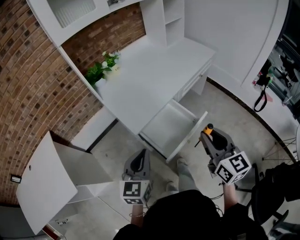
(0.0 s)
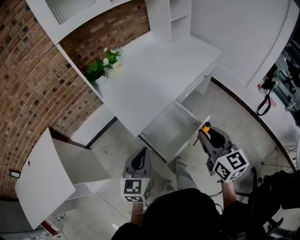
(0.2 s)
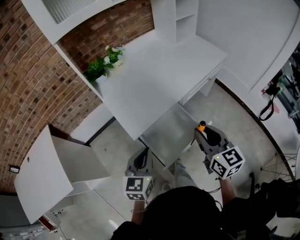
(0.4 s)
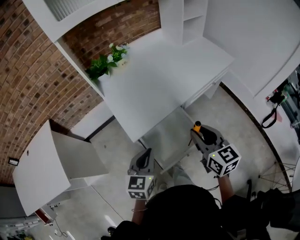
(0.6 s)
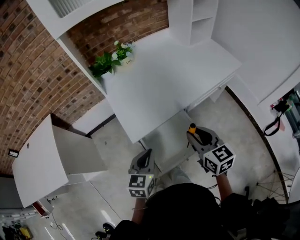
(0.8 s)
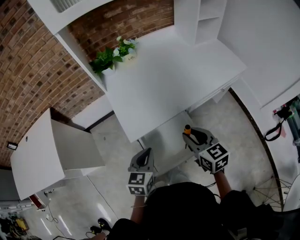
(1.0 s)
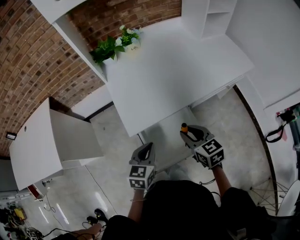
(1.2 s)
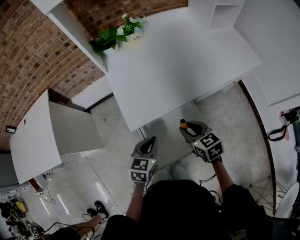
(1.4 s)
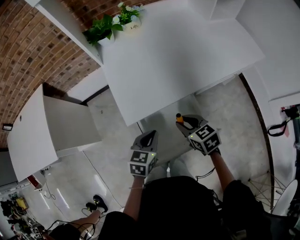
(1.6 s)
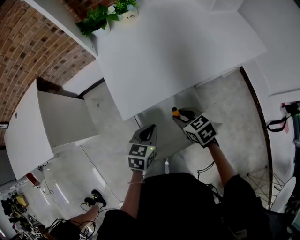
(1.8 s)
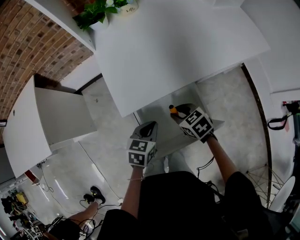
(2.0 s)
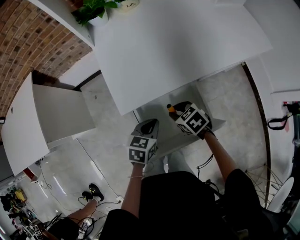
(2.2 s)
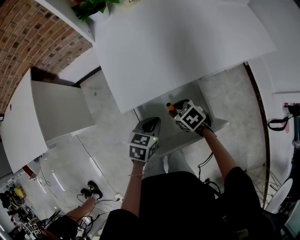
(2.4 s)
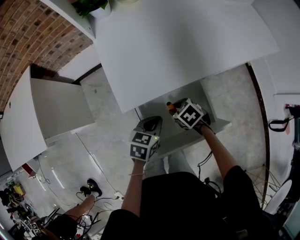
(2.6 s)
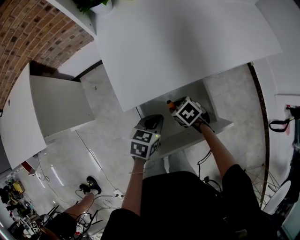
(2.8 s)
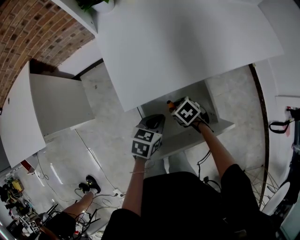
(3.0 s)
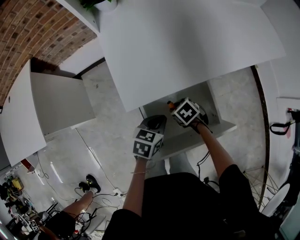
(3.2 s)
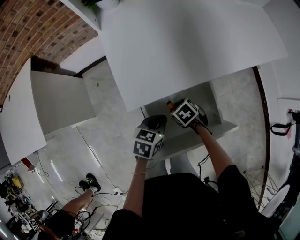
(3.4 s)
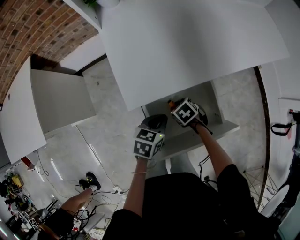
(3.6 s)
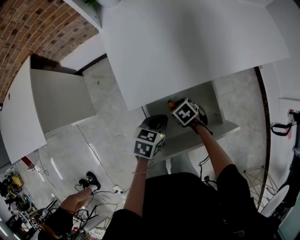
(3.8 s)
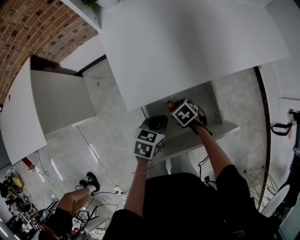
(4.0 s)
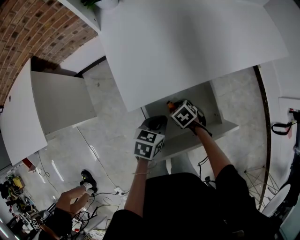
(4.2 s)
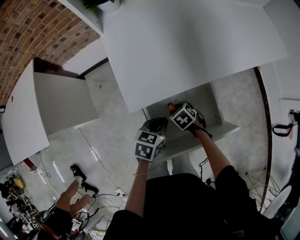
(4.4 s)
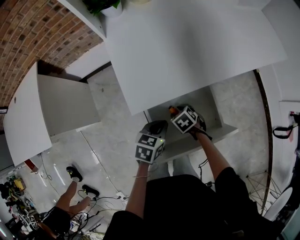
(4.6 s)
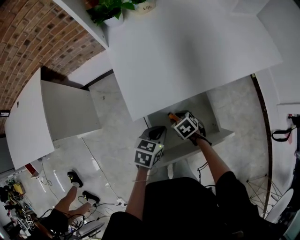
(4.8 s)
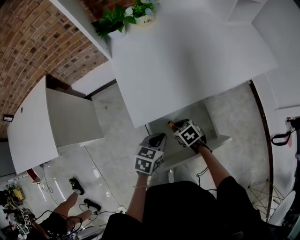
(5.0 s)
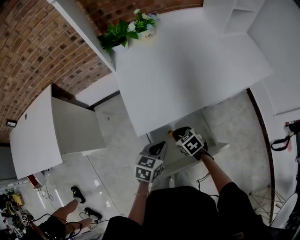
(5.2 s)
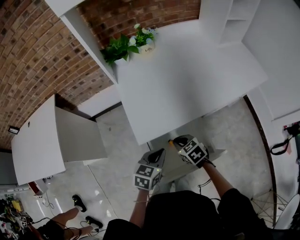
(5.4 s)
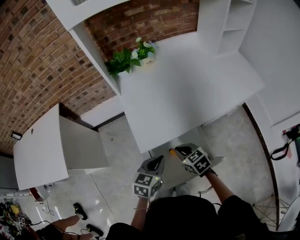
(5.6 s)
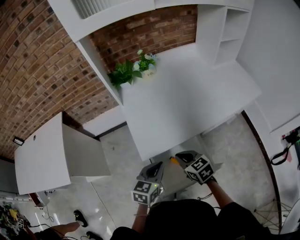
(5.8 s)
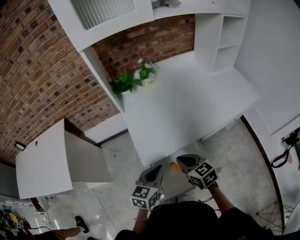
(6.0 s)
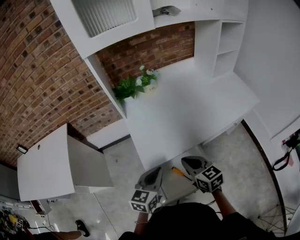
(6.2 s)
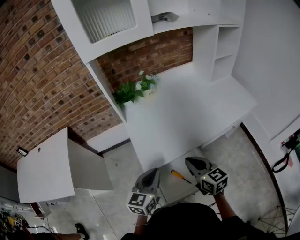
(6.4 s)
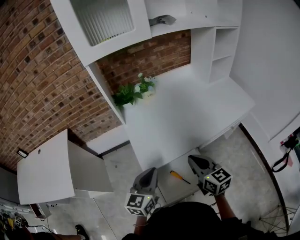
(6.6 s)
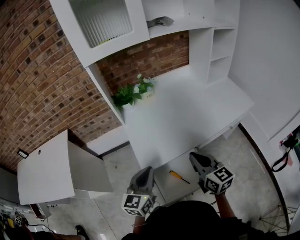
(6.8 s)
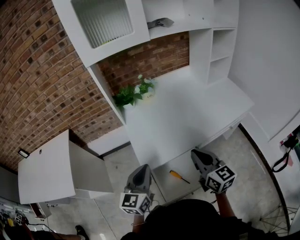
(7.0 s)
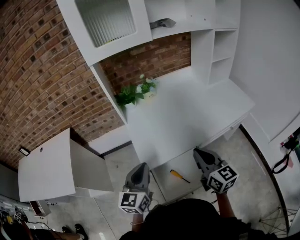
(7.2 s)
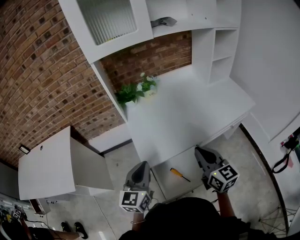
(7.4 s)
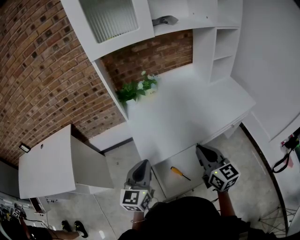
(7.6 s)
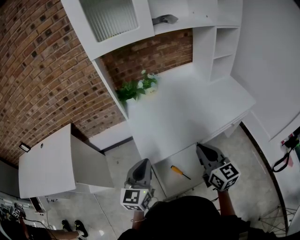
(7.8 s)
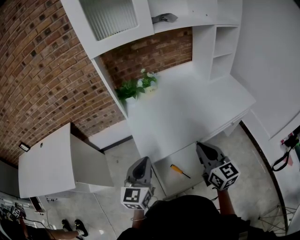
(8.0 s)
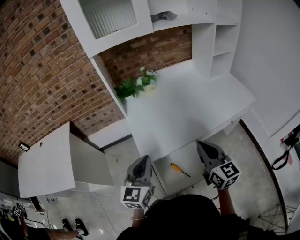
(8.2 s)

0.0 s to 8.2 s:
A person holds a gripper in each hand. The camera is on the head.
0.0 to 1.6 s: The two grippers go about 20 cm downward. The left gripper rotates roughly 30 degrees; the right gripper tilts its fingers some 30 degrees downward.
1.6 to 3.2 s: The right gripper shifts roughly 20 cm downward, and swivels about 30 degrees. Meanwhile the left gripper is displaced downward by about 10 cm.
3.2 to 5.0 s: The grippers move only a little.
5.0 to 6.6 s: Both grippers travel together upward, about 30 cm. The left gripper tilts its fingers about 30 degrees upward. The right gripper angles its fingers upward, by approximately 50 degrees.
6.6 to 8.2 s: The right gripper moves upward, approximately 5 cm. Meanwhile the left gripper shifts by roughly 5 cm.

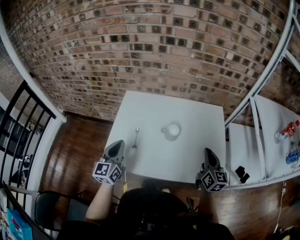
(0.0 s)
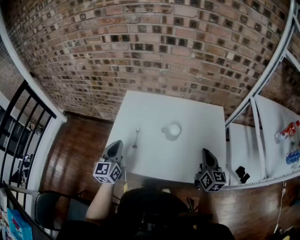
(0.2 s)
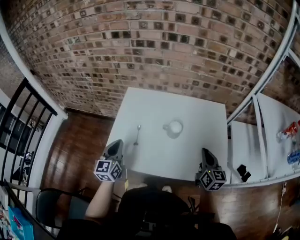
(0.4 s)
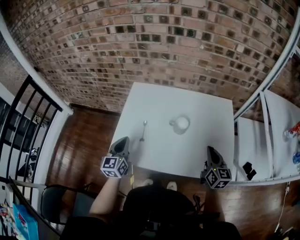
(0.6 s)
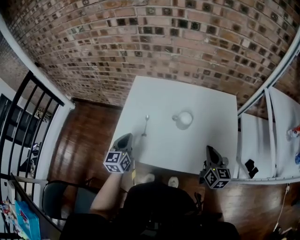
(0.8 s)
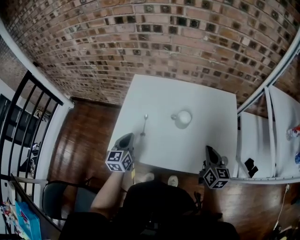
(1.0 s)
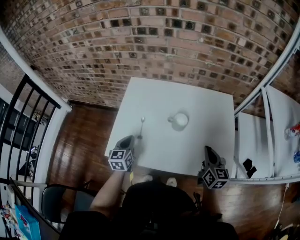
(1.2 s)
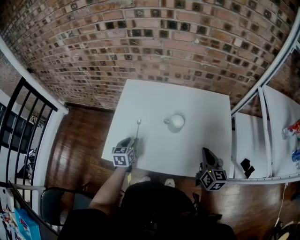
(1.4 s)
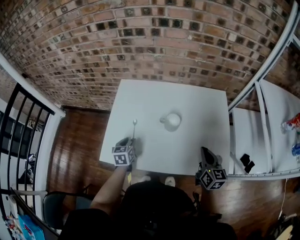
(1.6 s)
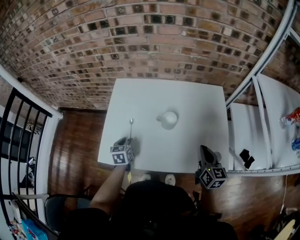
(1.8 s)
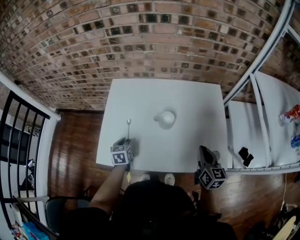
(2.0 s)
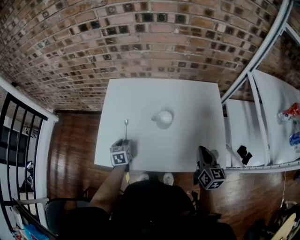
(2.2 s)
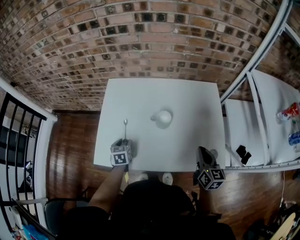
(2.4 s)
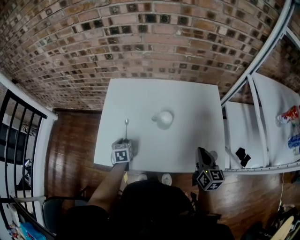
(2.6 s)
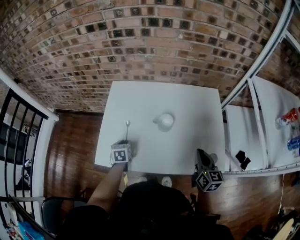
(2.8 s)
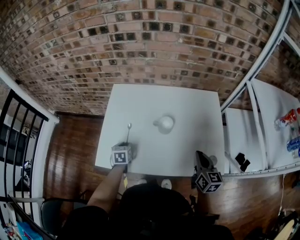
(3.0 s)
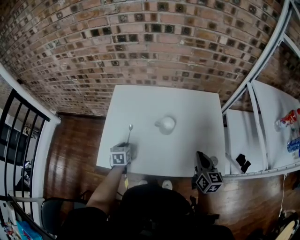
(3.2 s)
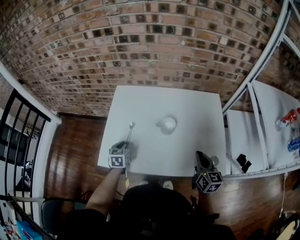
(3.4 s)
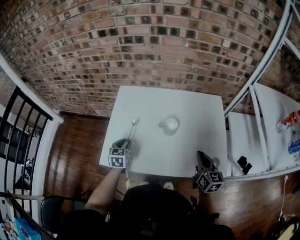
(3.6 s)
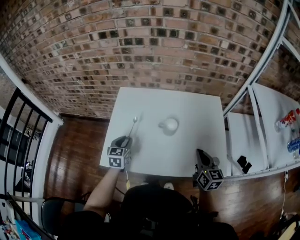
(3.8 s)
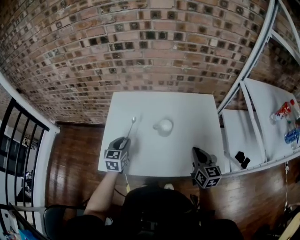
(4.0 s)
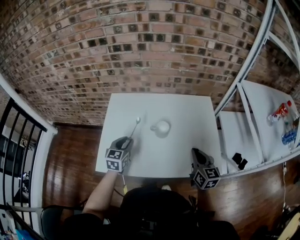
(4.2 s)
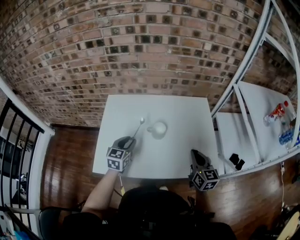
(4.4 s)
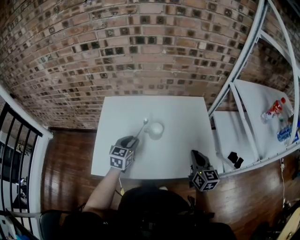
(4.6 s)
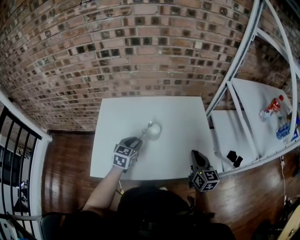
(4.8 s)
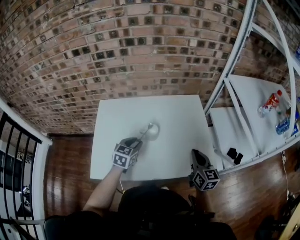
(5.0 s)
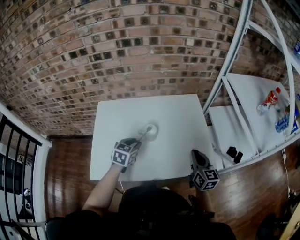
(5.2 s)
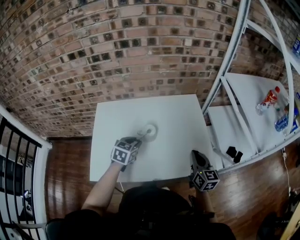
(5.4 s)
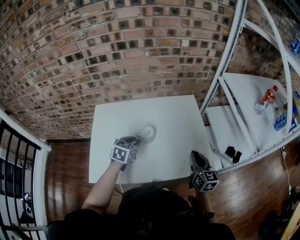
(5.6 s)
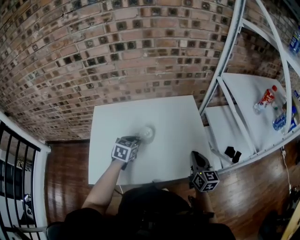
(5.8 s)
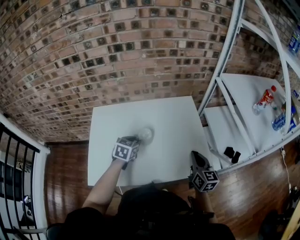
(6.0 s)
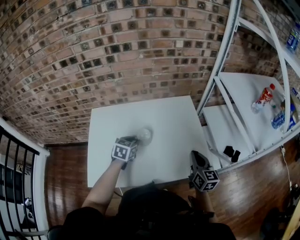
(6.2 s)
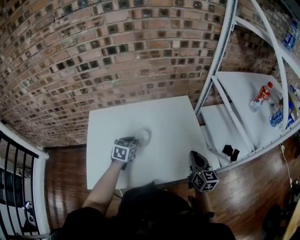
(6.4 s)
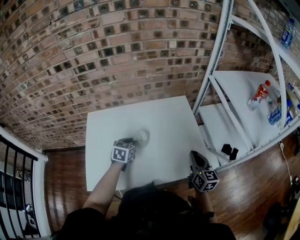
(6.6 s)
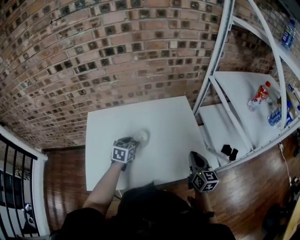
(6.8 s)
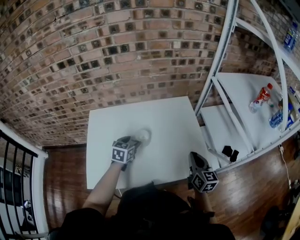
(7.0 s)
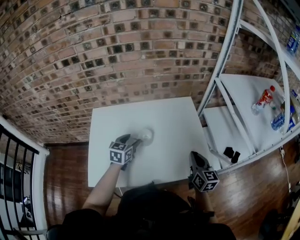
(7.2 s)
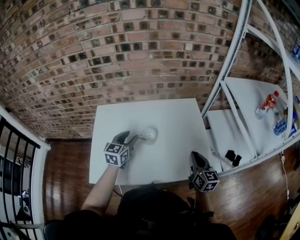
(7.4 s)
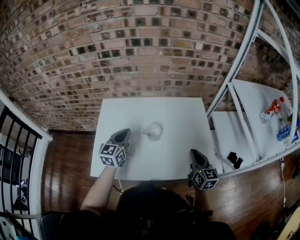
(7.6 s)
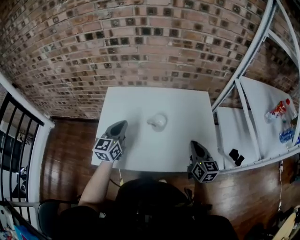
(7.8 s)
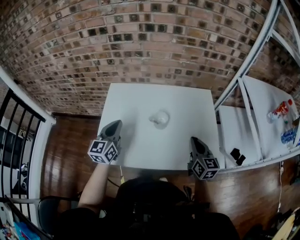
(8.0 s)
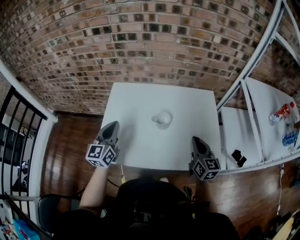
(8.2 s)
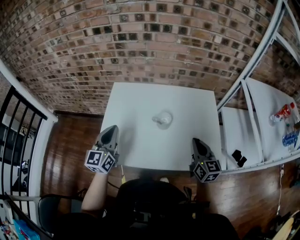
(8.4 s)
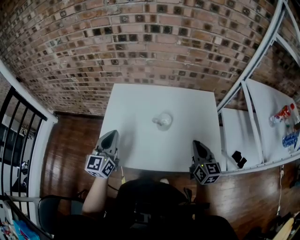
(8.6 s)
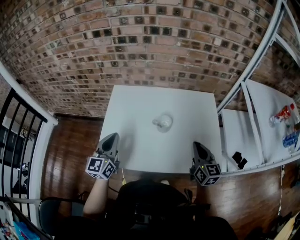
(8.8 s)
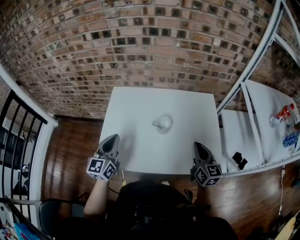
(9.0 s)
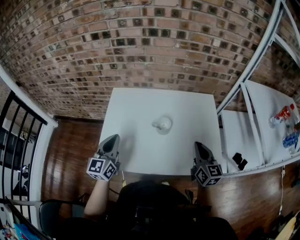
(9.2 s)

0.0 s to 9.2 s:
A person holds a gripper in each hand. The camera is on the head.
0.0 to 1.6 s: The left gripper is displaced downward by some 20 cm, tips its fingers downward by roughly 30 degrees, and opens; the right gripper moves downward, roughly 5 cm.
1.6 to 3.0 s: There are only small adjustments of the grippers.
3.0 to 4.6 s: The left gripper moves upward and to the right, roughly 20 cm, and turns by some 30 degrees.
4.6 to 6.2 s: The left gripper goes approximately 10 cm forward and to the right, while the right gripper is displaced to the right by some 5 cm.
6.2 to 7.6 s: The left gripper travels upward, to the left and backward by roughly 15 cm, swivels approximately 30 degrees, and closes up.
7.6 to 9.2 s: The left gripper travels to the left and backward by about 15 cm.

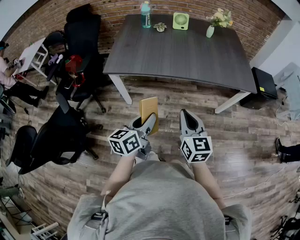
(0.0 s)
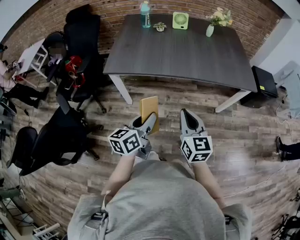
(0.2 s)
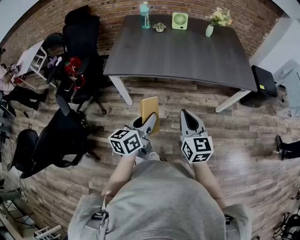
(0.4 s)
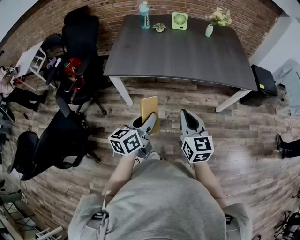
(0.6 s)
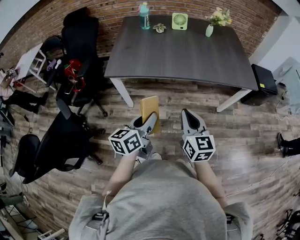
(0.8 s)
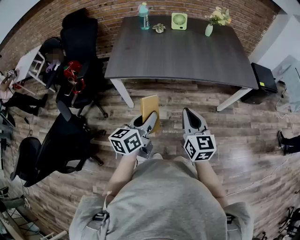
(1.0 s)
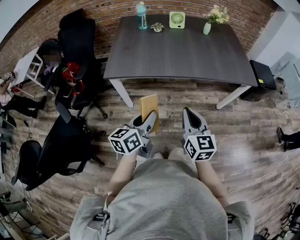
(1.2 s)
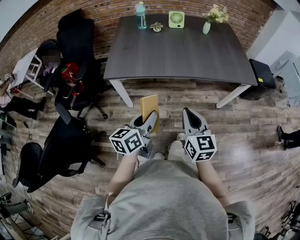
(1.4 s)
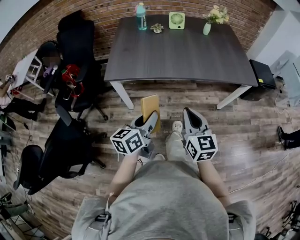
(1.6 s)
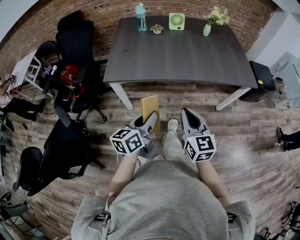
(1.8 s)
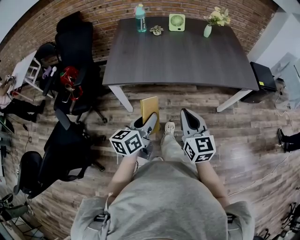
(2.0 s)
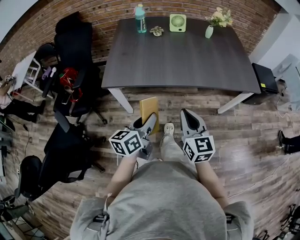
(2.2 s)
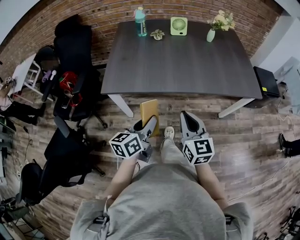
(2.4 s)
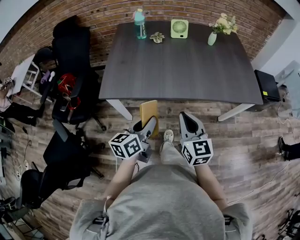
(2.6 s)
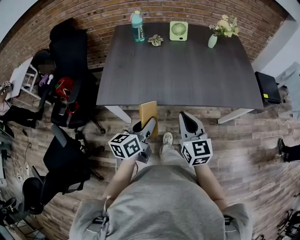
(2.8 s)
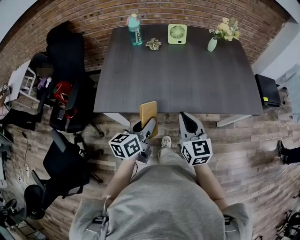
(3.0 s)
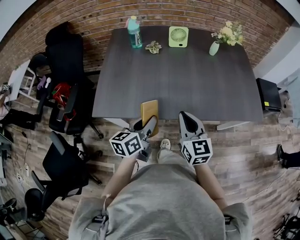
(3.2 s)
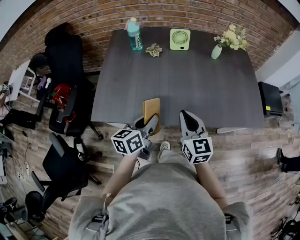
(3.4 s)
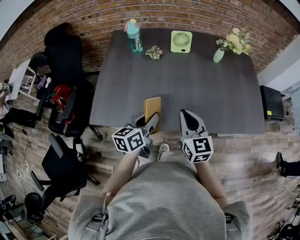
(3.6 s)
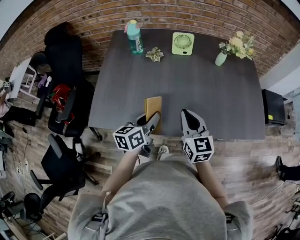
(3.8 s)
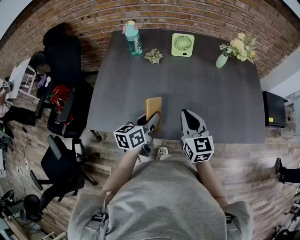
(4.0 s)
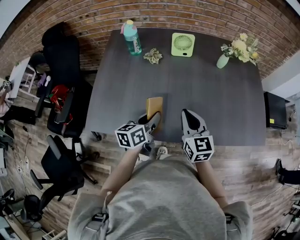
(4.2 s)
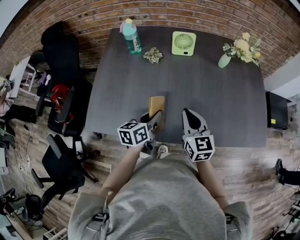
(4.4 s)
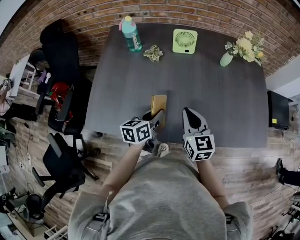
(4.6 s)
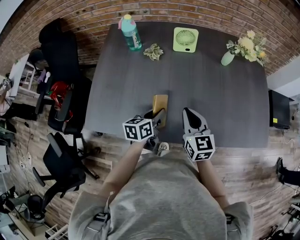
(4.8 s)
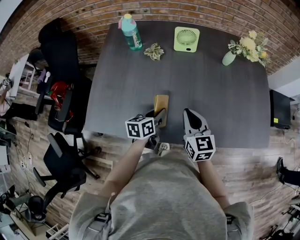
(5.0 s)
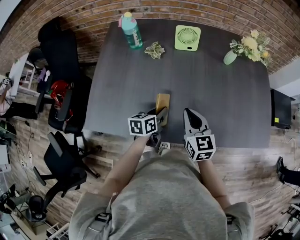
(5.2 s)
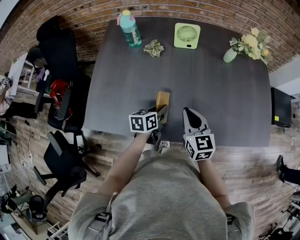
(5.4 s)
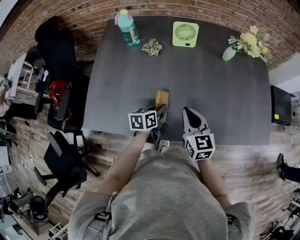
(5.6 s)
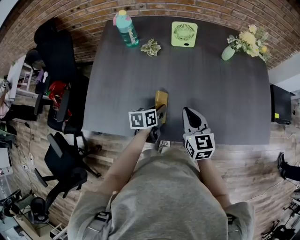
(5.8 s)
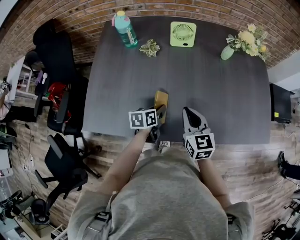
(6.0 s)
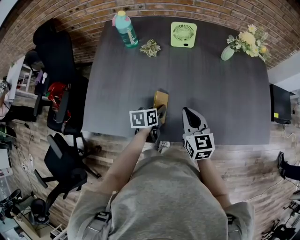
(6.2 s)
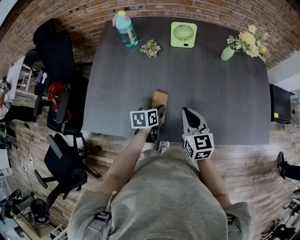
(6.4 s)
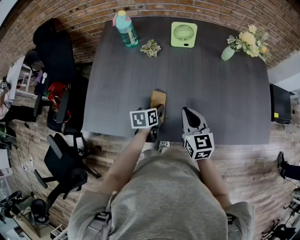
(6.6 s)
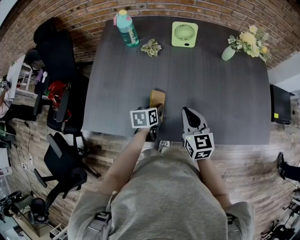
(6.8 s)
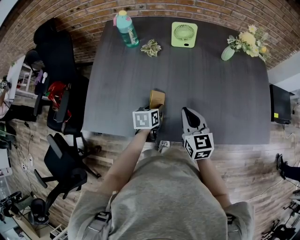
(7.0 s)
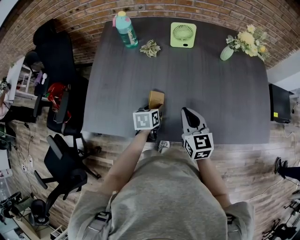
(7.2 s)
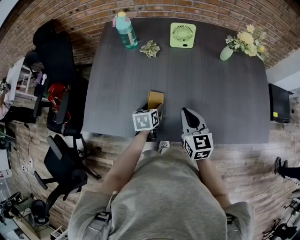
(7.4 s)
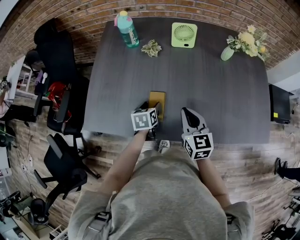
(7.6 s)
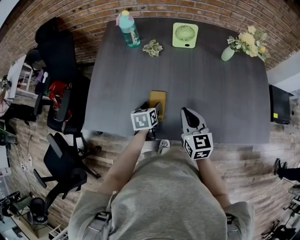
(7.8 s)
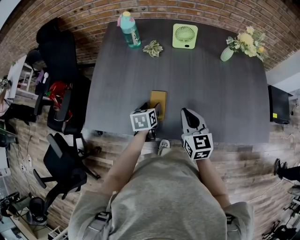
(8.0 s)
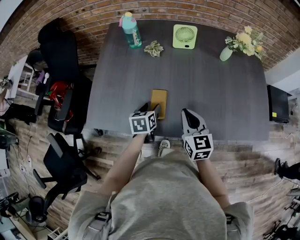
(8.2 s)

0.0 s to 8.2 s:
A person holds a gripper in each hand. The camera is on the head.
0.0 to 1.6 s: The left gripper shifts by some 5 cm.
1.6 to 3.2 s: Both grippers travel together forward, roughly 25 cm.
3.2 to 5.0 s: The right gripper is displaced forward by roughly 20 cm, while the left gripper moves forward and downward, roughly 25 cm.
5.0 to 6.6 s: The left gripper heads downward, covering roughly 5 cm.
6.6 to 8.2 s: The left gripper ends up roughly 5 cm from where it was, and opens its fingers.
